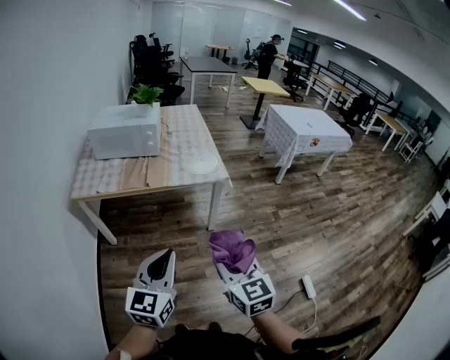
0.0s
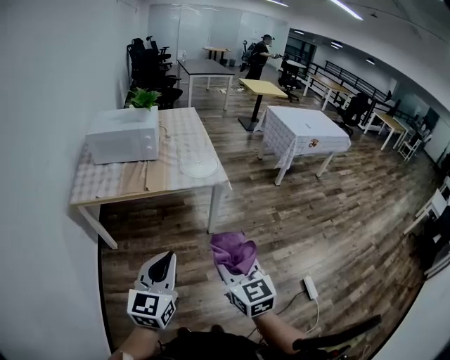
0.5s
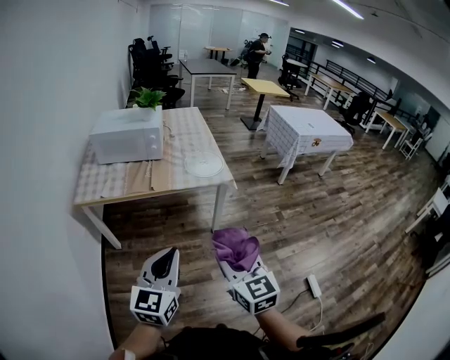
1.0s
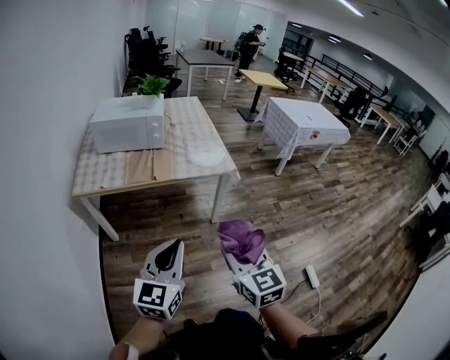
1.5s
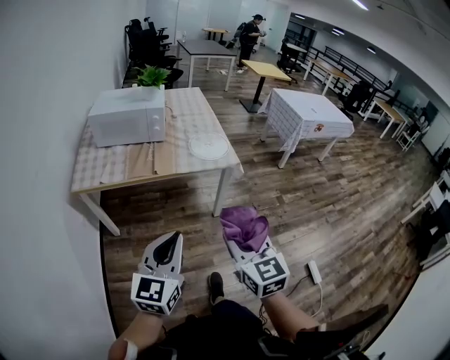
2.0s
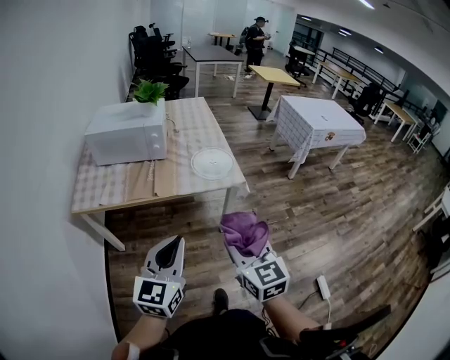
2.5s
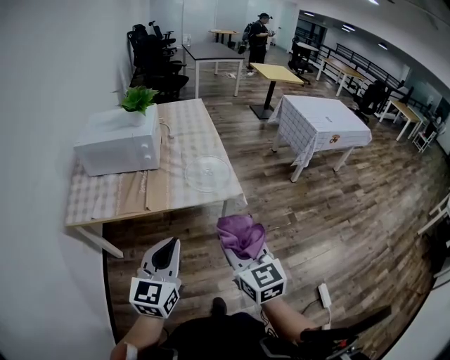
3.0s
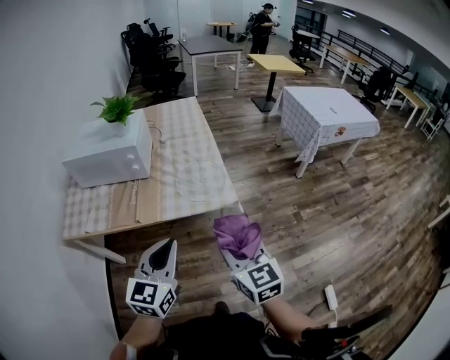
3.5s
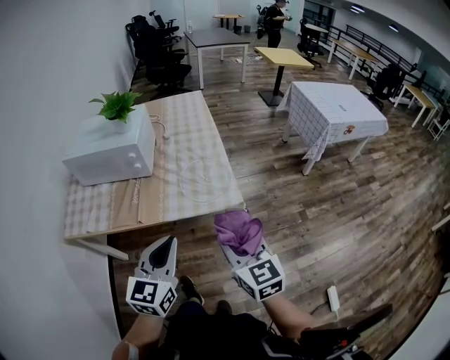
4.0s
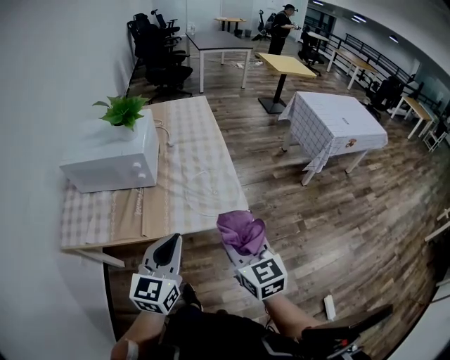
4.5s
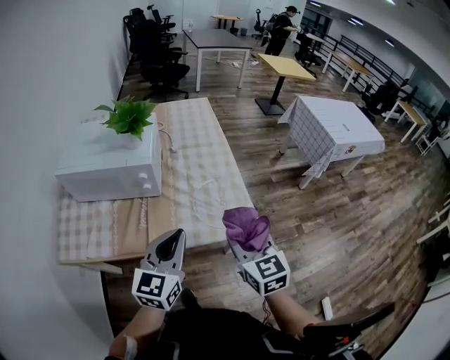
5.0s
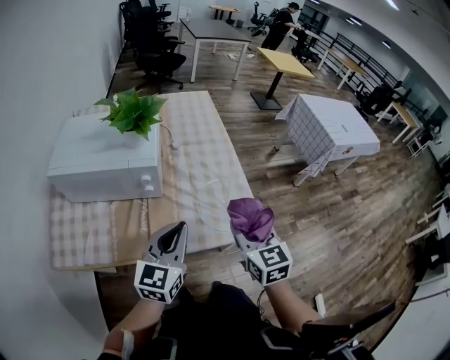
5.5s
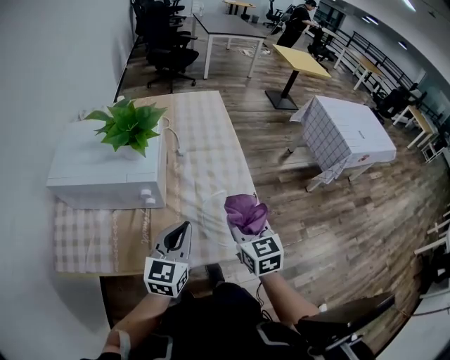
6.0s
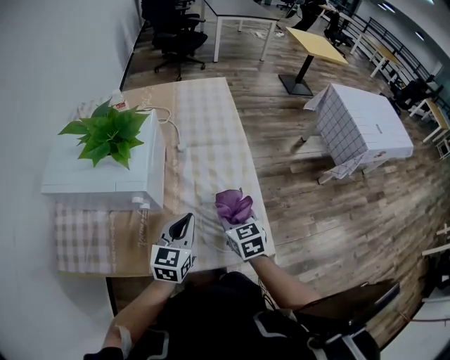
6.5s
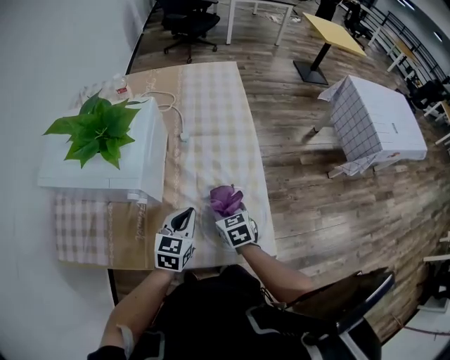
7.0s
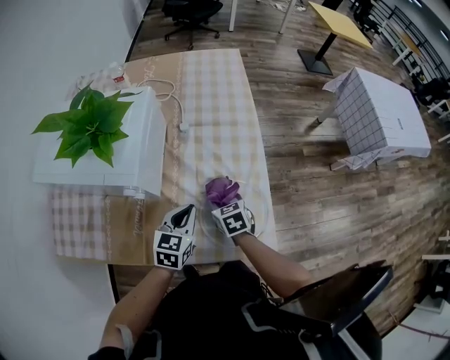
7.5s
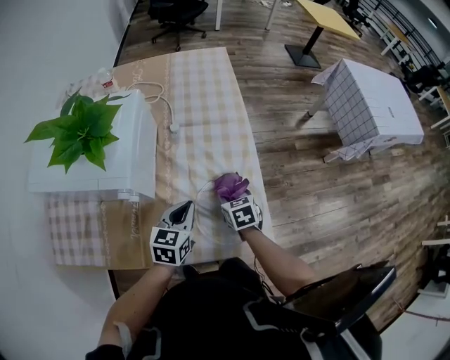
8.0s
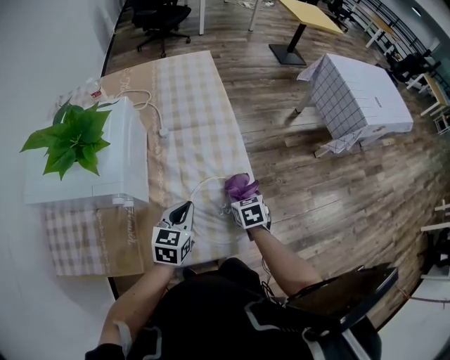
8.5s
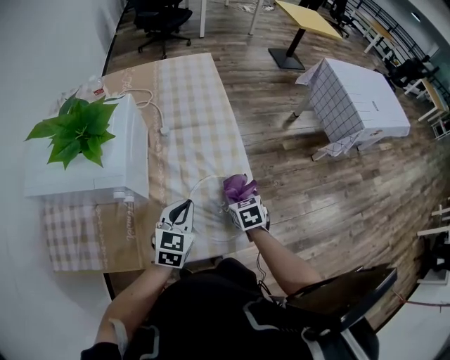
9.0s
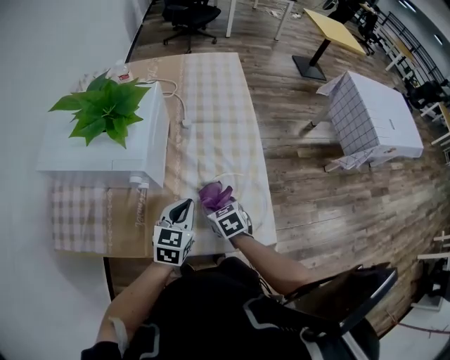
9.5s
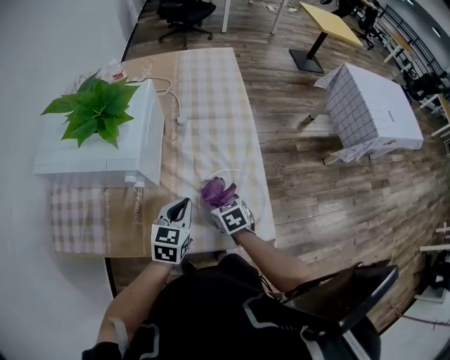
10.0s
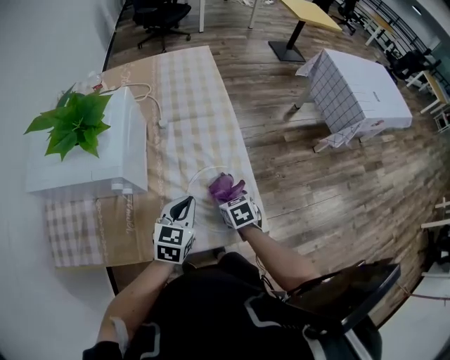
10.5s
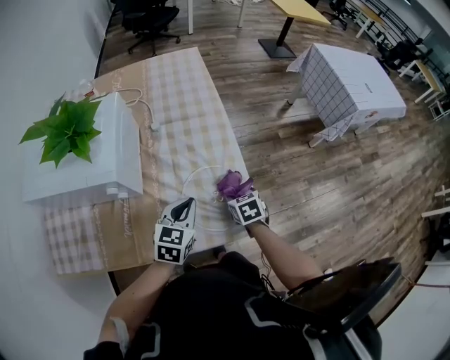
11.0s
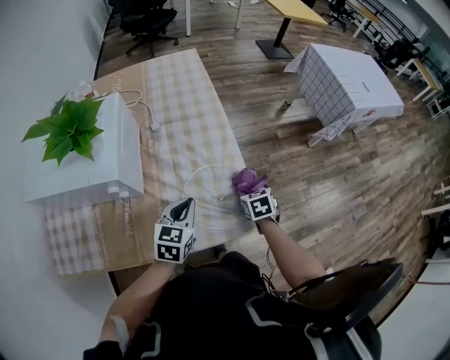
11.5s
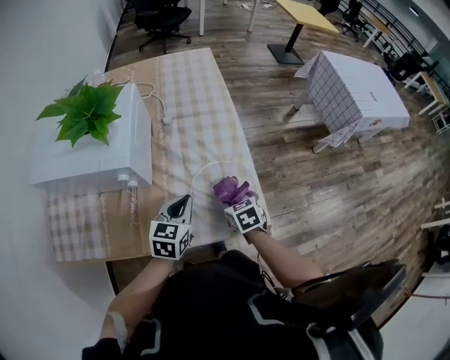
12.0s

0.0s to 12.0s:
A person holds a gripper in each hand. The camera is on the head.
0.0s to 2.0s: The right gripper shifts approximately 5 cm to the left and forward. The left gripper goes approximately 5 cm to the left.
2.0s to 4.0s: Both grippers travel together forward and to the right, some 30 cm.
4.0s to 6.0s: The two grippers go some 30 cm forward.
6.0s to 8.0s: The grippers both shift downward and forward by about 20 cm. The left gripper rotates about 20 degrees; the right gripper changes its angle by some 30 degrees.
8.0s to 10.0s: The right gripper moves backward and to the left, some 10 cm.
10.0s to 12.0s: The right gripper goes roughly 5 cm to the right.

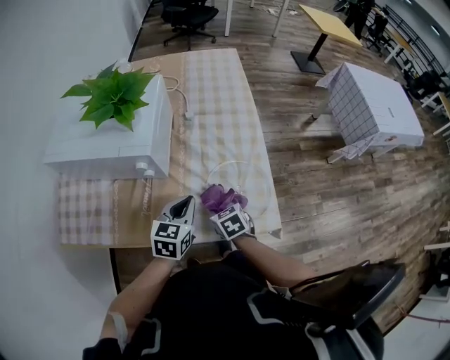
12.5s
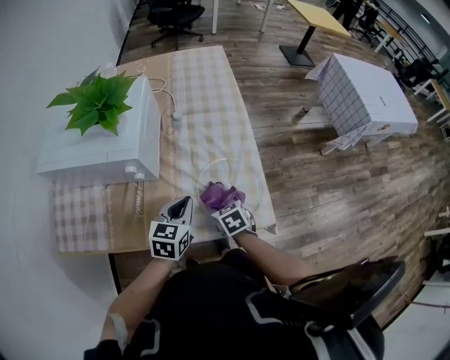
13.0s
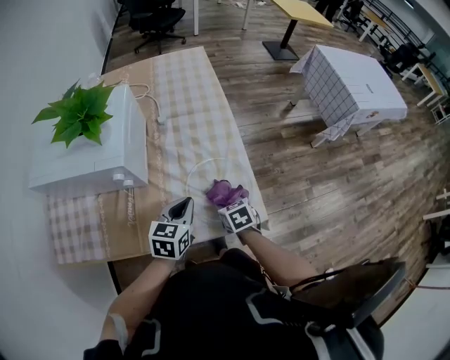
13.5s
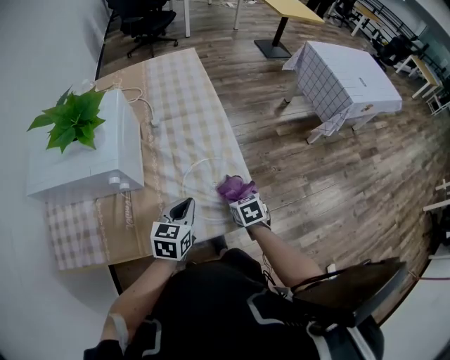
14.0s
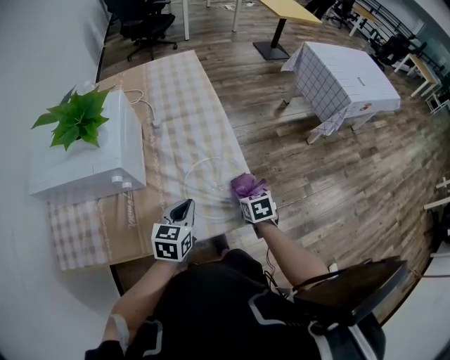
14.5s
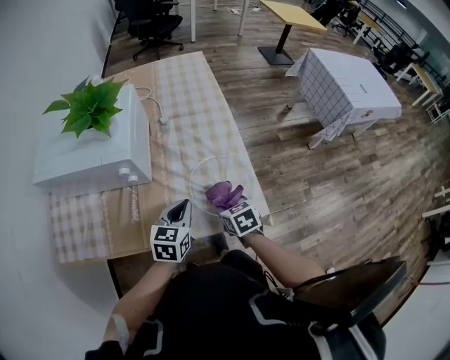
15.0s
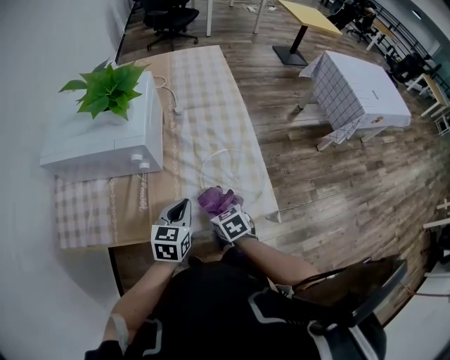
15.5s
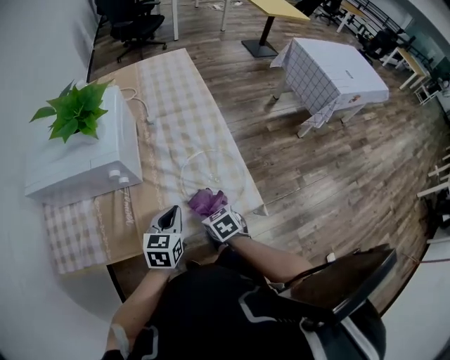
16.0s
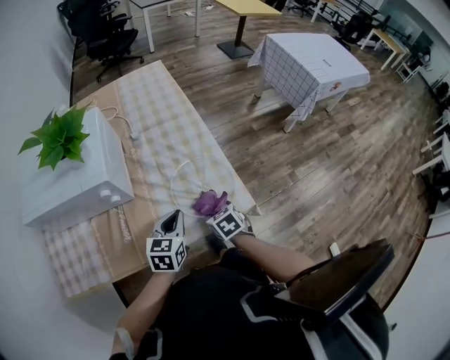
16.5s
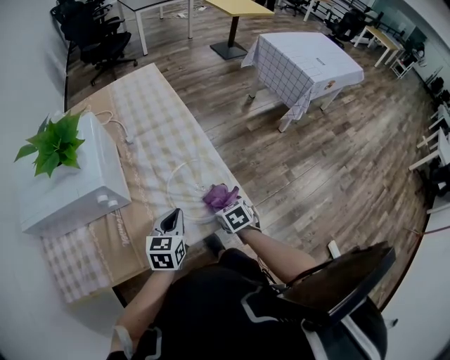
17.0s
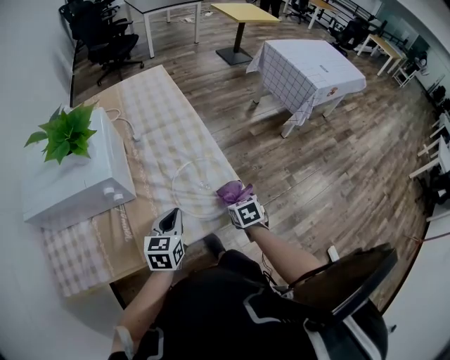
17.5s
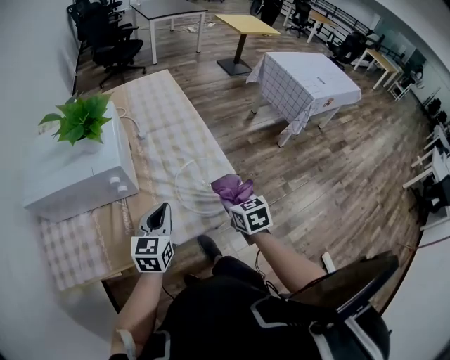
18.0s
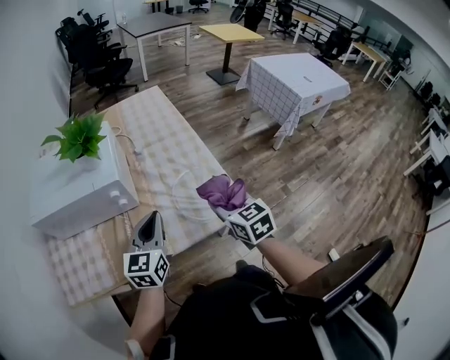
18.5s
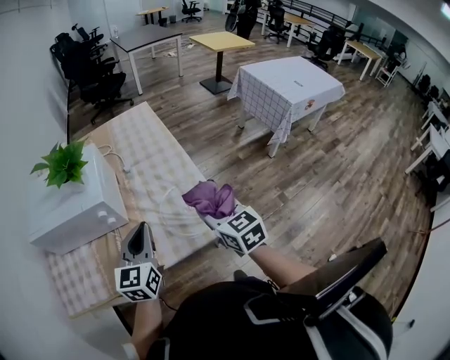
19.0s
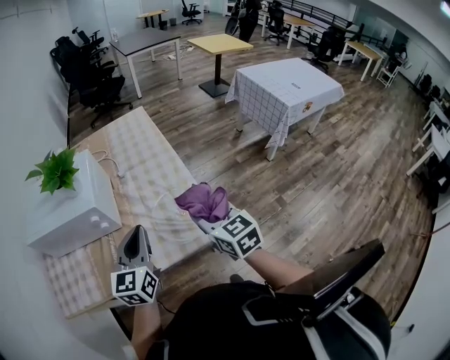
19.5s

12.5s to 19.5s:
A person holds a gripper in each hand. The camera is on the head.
12.5s to 14.5s: The right gripper travels to the right by some 20 cm, and turns by roughly 30 degrees. Meanwhile the left gripper goes approximately 5 cm to the right.
14.5s to 16.0s: The left gripper heads to the left, covering about 5 cm; the right gripper travels to the left by roughly 15 cm.
16.0s to 17.5s: The right gripper travels to the right by about 15 cm, and rotates approximately 20 degrees.
17.5s to 19.5s: The grippers both shift upward by approximately 20 cm. The left gripper swivels approximately 20 degrees. Meanwhile the right gripper angles its fingers upward, by about 40 degrees.

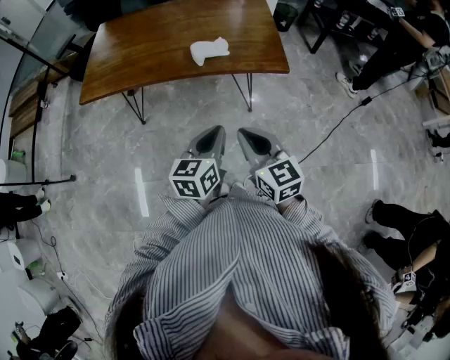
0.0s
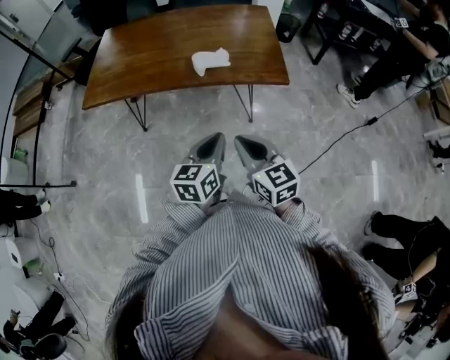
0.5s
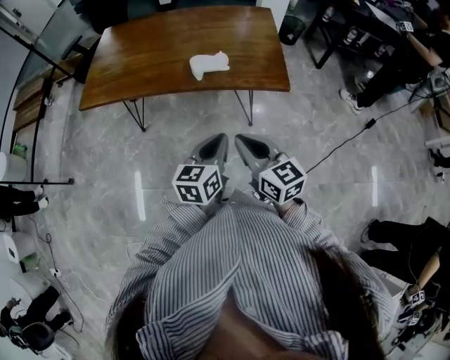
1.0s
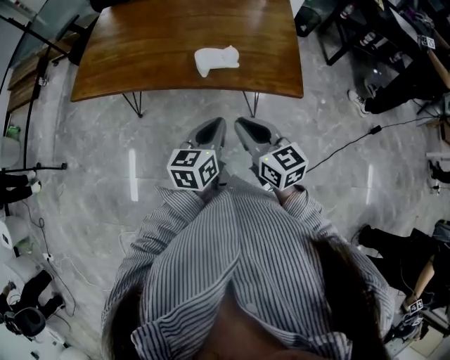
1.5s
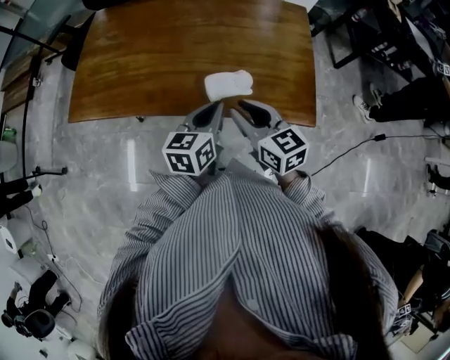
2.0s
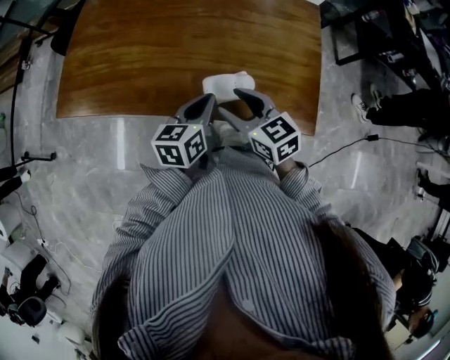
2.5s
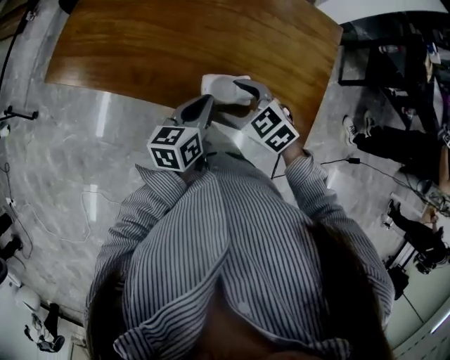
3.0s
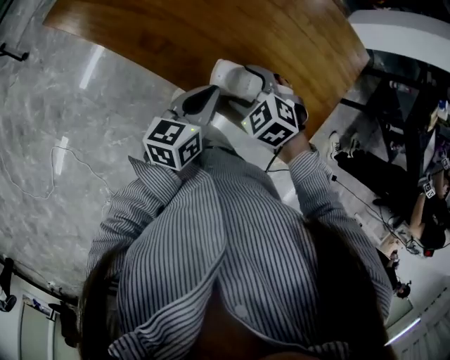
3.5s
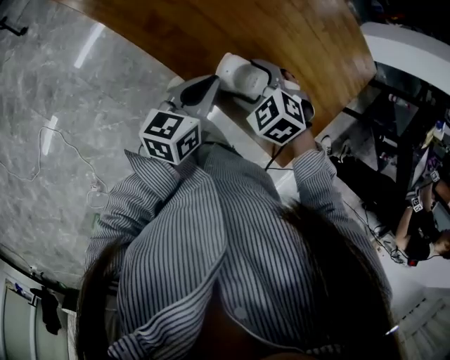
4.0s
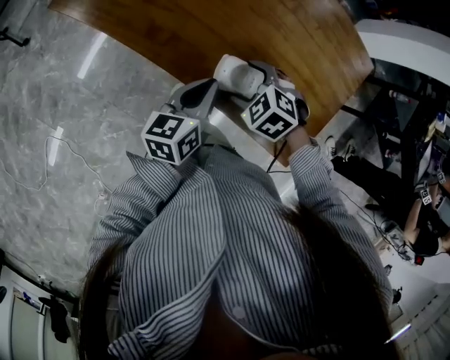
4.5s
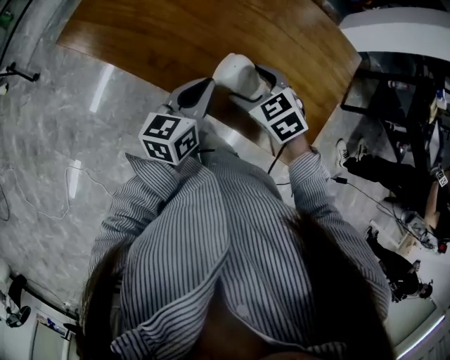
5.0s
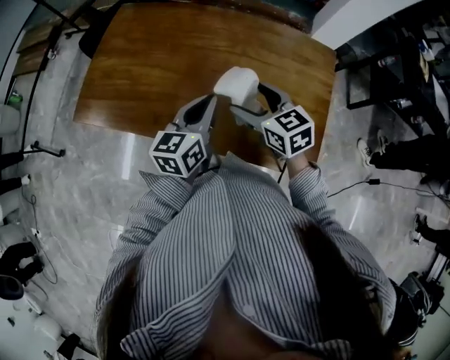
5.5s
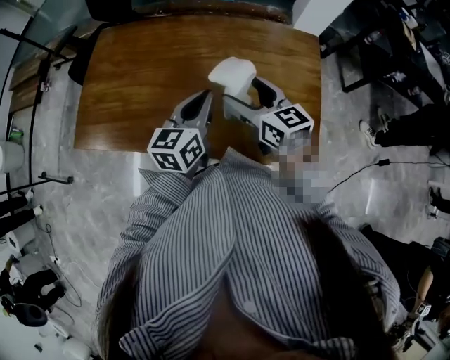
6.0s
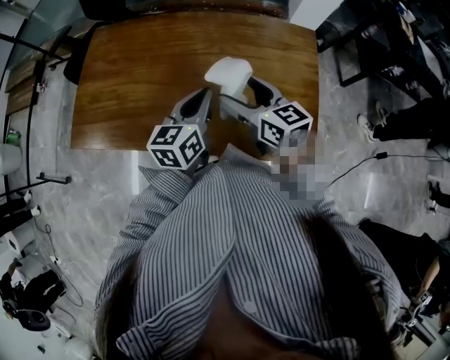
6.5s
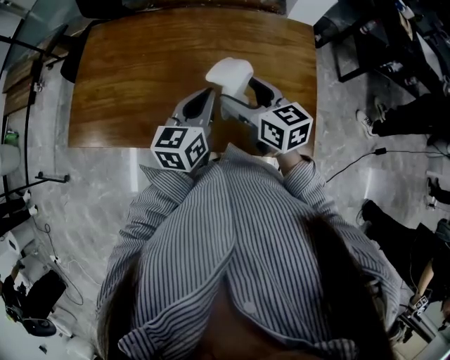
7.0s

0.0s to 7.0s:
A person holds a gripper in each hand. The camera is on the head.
0.0s to 2.0s: The two grippers go roughly 30 cm forward.
2.0s to 3.5s: The left gripper is displaced downward by roughly 10 cm, and turns by roughly 30 degrees; the right gripper travels downward by approximately 15 cm, tips its fingers downward by some 50 degrees, and opens its fingers.
3.5s to 5.0s: The left gripper shifts some 10 cm forward and upward, while the right gripper goes about 10 cm upward and forward, and turns by approximately 30 degrees.
5.0s to 7.0s: The left gripper is displaced to the right, upward and forward by approximately 15 cm, and swivels roughly 20 degrees. Meanwhile the right gripper is displaced upward and to the right by about 15 cm, and tips its fingers upward by about 30 degrees.
